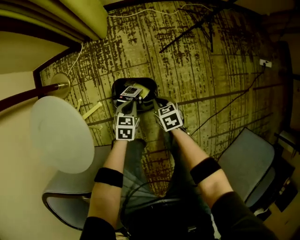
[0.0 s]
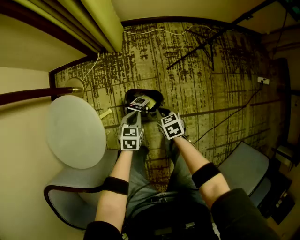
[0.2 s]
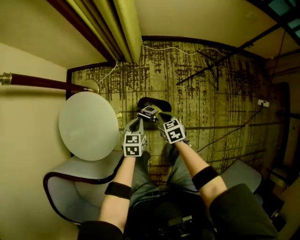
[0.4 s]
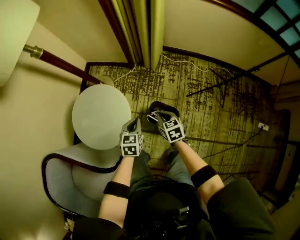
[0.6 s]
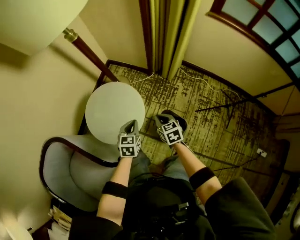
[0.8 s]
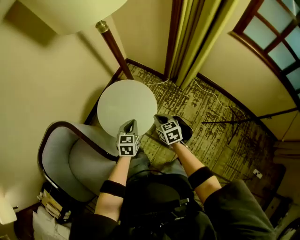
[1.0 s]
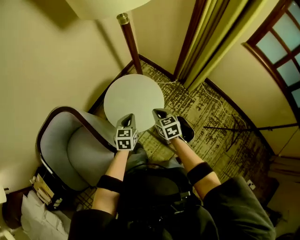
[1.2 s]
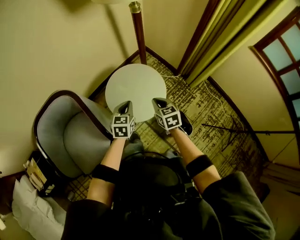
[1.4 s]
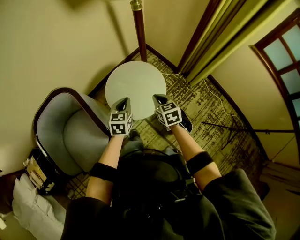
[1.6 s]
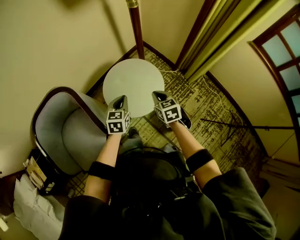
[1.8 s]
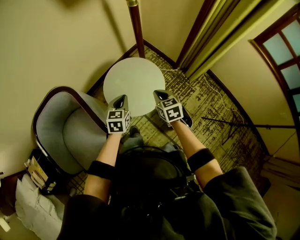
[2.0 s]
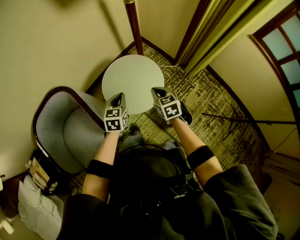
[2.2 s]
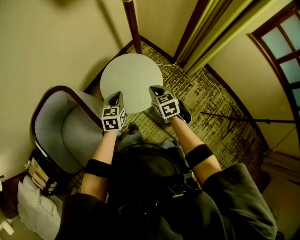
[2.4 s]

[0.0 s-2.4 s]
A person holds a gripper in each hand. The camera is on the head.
0.0 to 1.2 s: The two grippers go approximately 40 cm upward. The right gripper rotates approximately 60 degrees. Meanwhile the left gripper rotates roughly 60 degrees.
1.2 to 2.4 s: The left gripper is displaced to the left by approximately 5 cm.

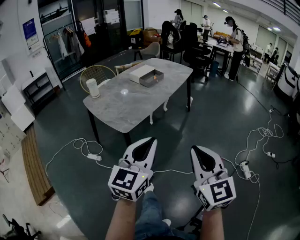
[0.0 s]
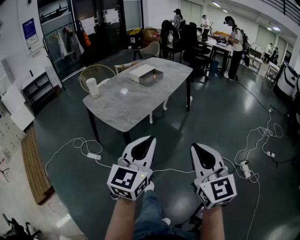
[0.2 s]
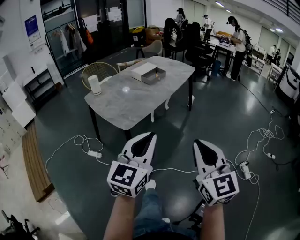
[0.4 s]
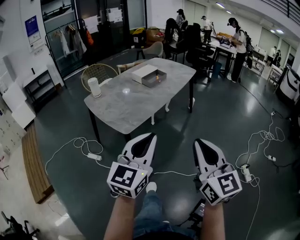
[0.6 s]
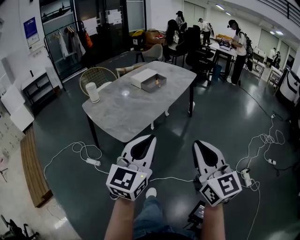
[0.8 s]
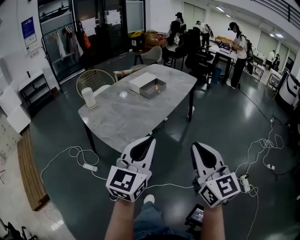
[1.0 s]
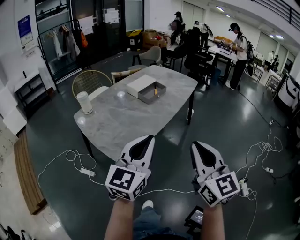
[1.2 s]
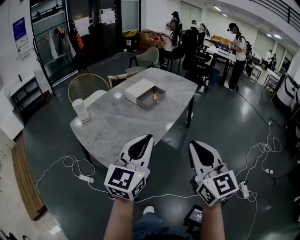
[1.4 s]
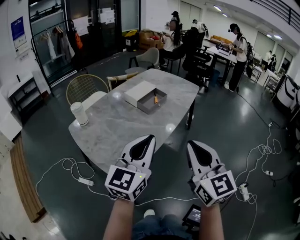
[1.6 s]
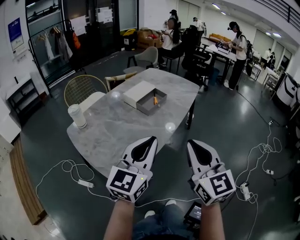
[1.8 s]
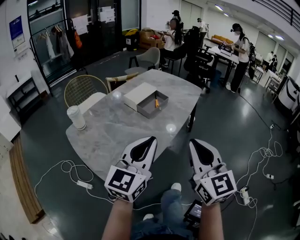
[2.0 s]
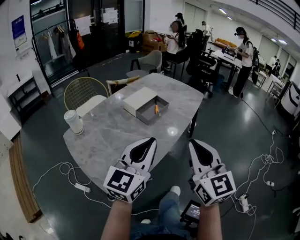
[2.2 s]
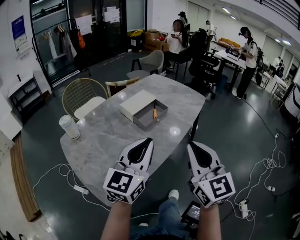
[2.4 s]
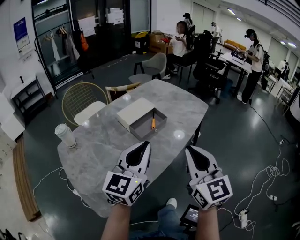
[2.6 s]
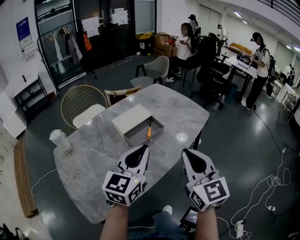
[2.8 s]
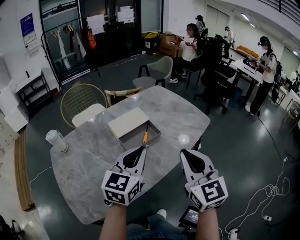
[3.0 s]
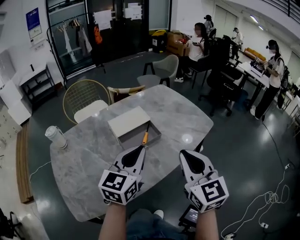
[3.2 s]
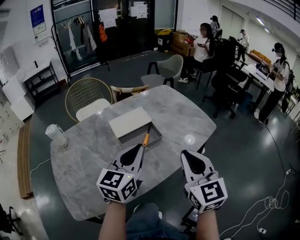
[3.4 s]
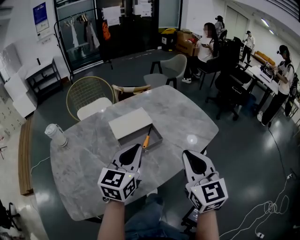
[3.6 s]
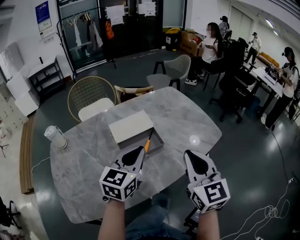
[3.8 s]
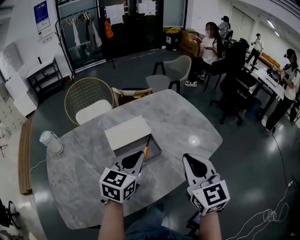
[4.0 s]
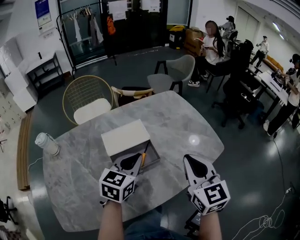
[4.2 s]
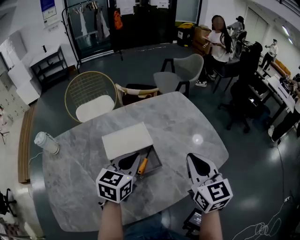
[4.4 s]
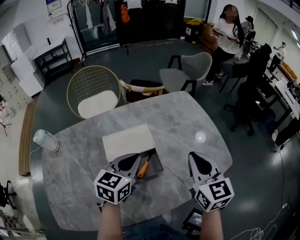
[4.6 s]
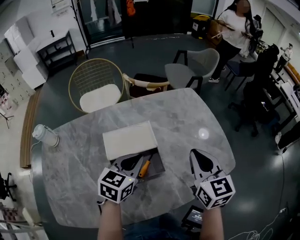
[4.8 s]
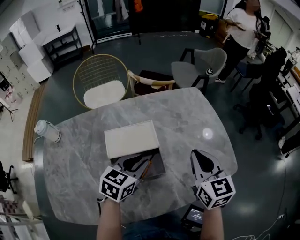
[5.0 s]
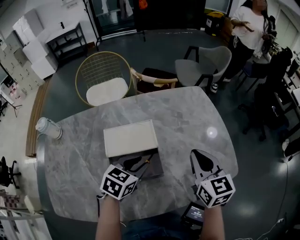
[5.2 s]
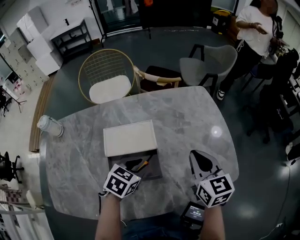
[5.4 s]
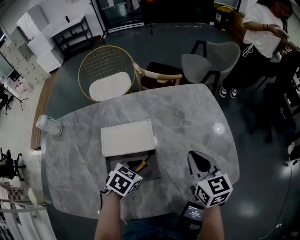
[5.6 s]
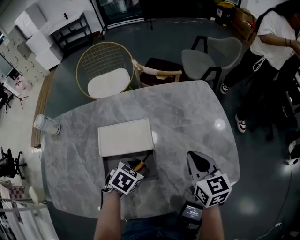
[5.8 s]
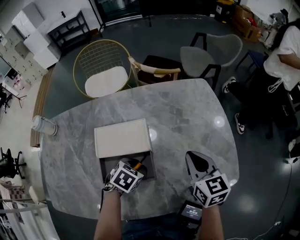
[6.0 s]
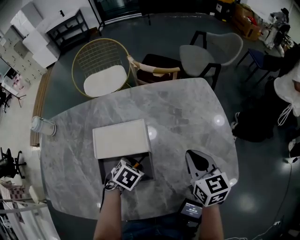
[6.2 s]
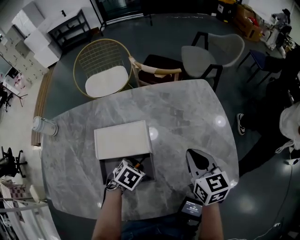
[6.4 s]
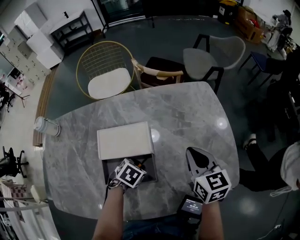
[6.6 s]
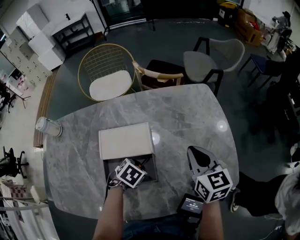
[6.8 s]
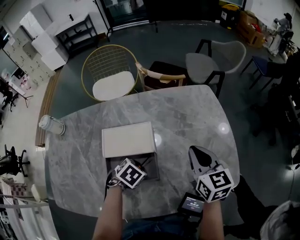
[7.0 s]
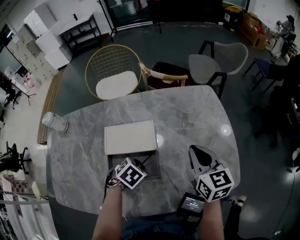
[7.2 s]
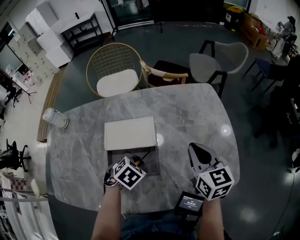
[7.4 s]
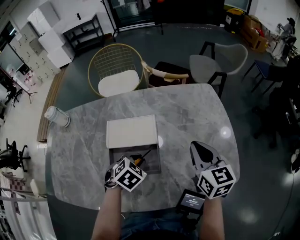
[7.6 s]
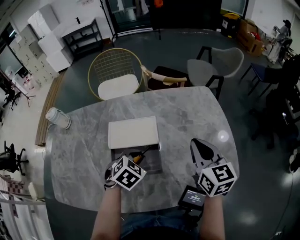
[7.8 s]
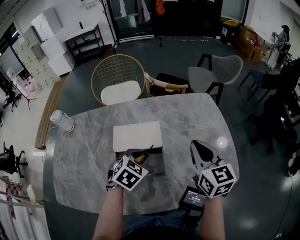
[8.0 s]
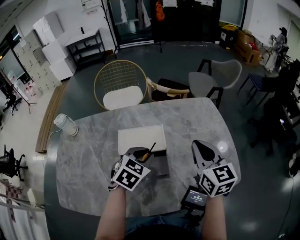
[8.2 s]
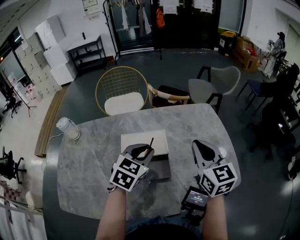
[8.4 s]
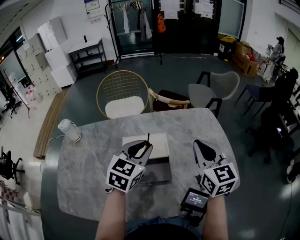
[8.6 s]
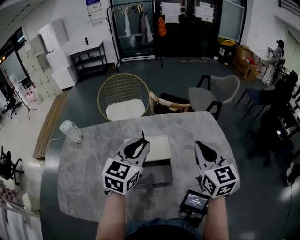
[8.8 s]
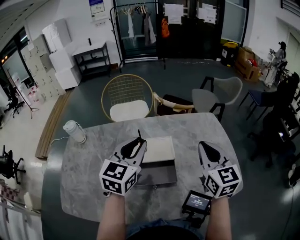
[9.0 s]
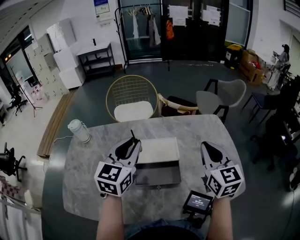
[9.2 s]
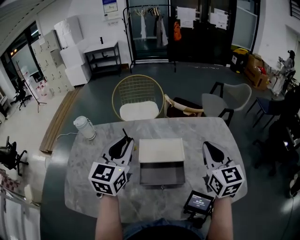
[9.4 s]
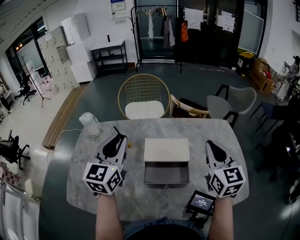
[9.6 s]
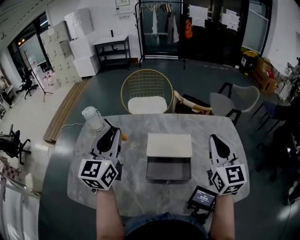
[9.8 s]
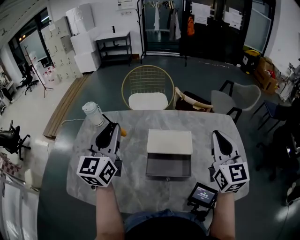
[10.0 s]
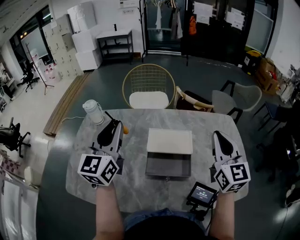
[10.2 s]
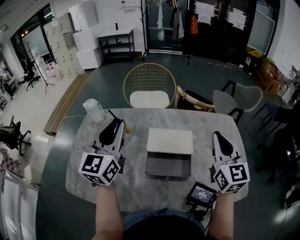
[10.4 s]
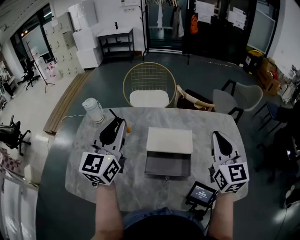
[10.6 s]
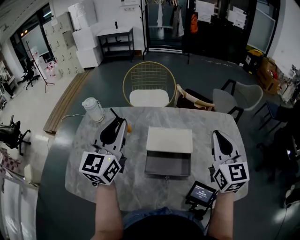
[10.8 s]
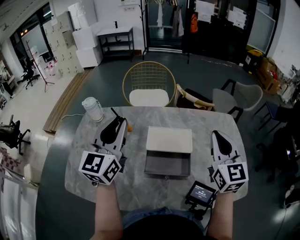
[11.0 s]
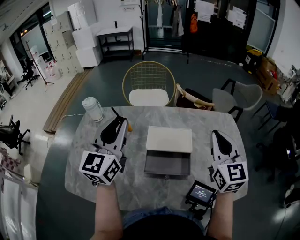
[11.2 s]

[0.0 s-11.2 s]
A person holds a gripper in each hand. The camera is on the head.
0.0 to 1.6 s: Both grippers move forward, approximately 30 cm.
1.6 to 3.2 s: Both grippers travel together forward, approximately 35 cm. The left gripper swivels approximately 20 degrees.
3.2 to 4.8 s: The left gripper goes about 25 cm forward and downward, and changes its angle by approximately 20 degrees; the right gripper moves forward, approximately 30 cm.
4.8 to 6.4 s: The left gripper goes approximately 15 cm downward, and points its fingers roughly 50 degrees further downward, while the right gripper travels downward and forward by some 10 cm.
6.4 to 8.0 s: Both grippers move upward, approximately 10 cm. The left gripper swivels roughly 20 degrees.
8.0 to 9.6 s: The right gripper is displaced to the left and upward by approximately 10 cm; the left gripper shifts about 30 cm to the left and upward, and tilts its fingers some 50 degrees upward.
9.6 to 11.2 s: The grippers make only small movements.

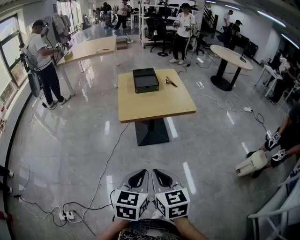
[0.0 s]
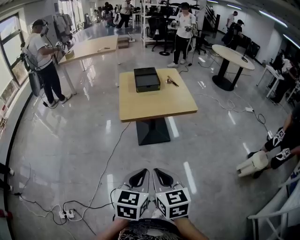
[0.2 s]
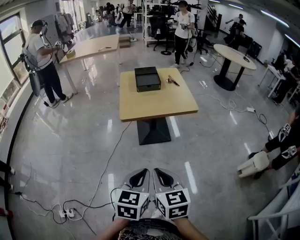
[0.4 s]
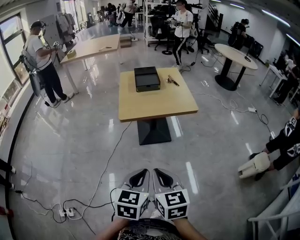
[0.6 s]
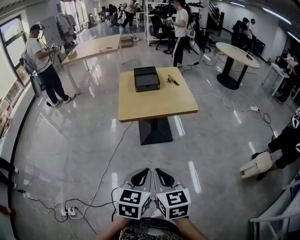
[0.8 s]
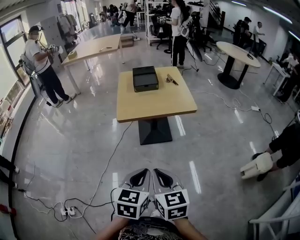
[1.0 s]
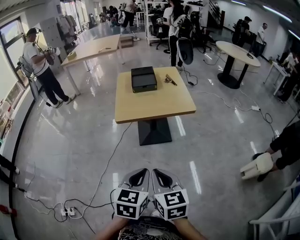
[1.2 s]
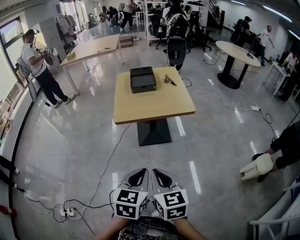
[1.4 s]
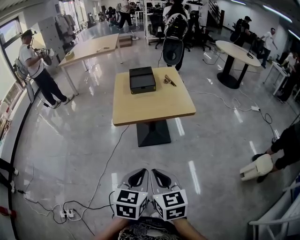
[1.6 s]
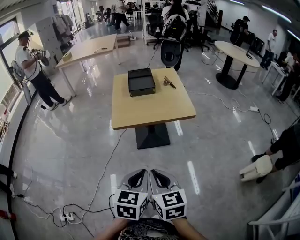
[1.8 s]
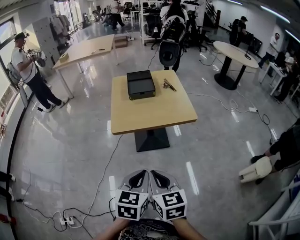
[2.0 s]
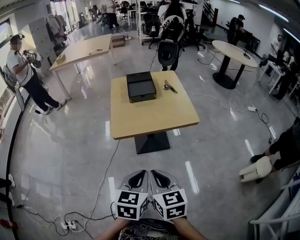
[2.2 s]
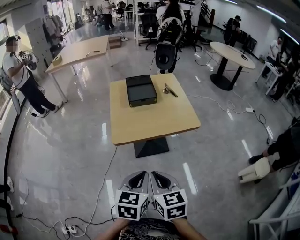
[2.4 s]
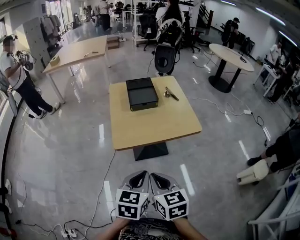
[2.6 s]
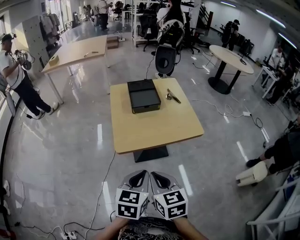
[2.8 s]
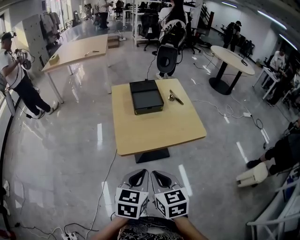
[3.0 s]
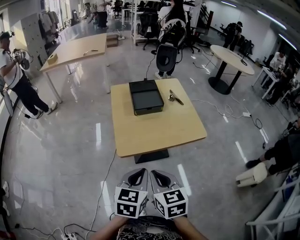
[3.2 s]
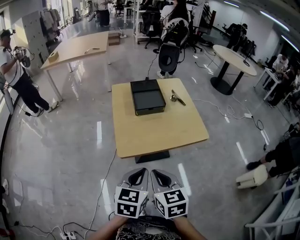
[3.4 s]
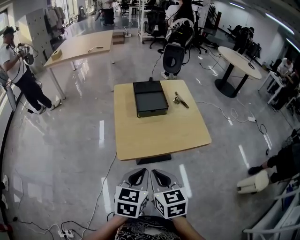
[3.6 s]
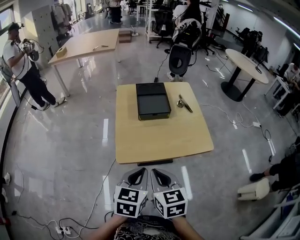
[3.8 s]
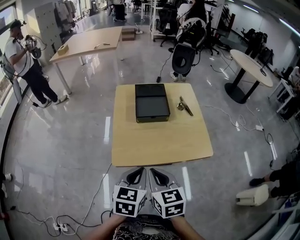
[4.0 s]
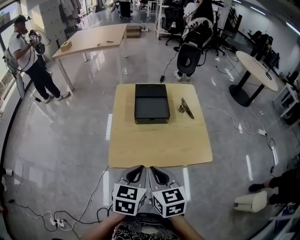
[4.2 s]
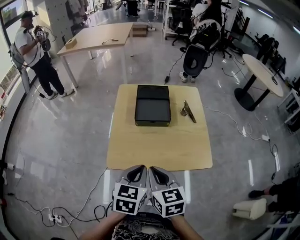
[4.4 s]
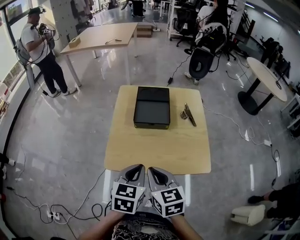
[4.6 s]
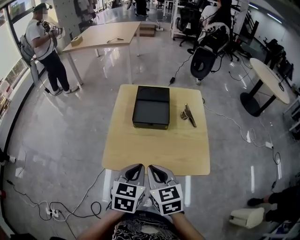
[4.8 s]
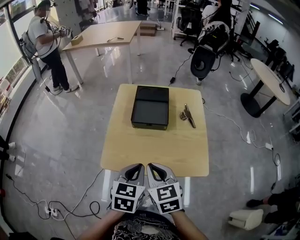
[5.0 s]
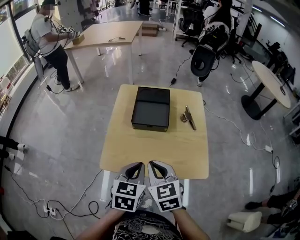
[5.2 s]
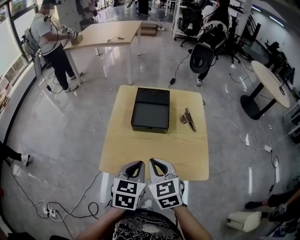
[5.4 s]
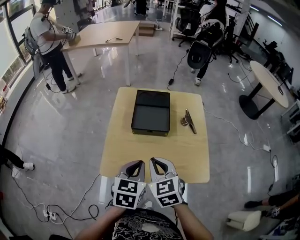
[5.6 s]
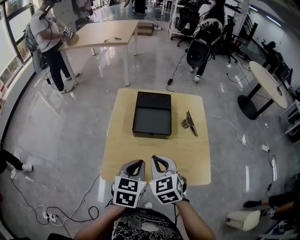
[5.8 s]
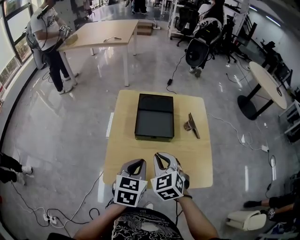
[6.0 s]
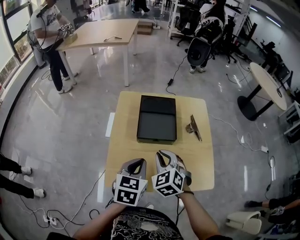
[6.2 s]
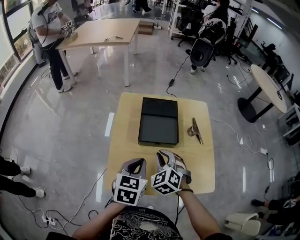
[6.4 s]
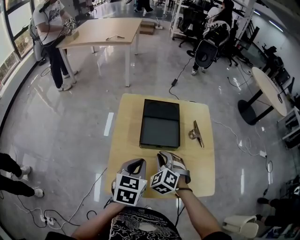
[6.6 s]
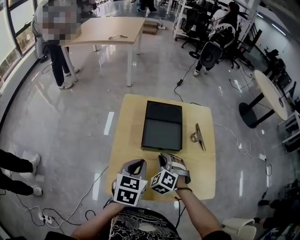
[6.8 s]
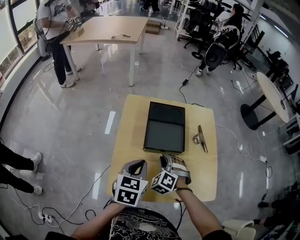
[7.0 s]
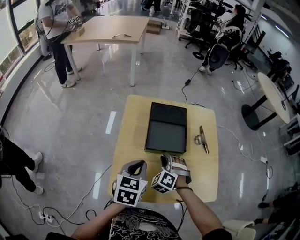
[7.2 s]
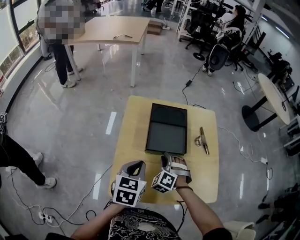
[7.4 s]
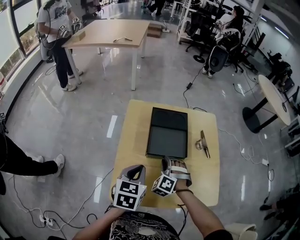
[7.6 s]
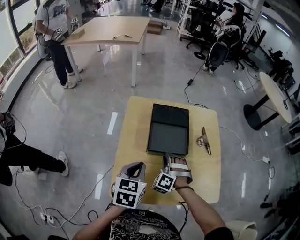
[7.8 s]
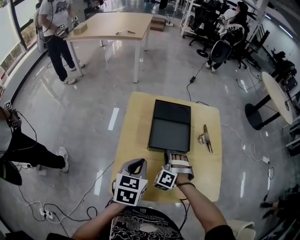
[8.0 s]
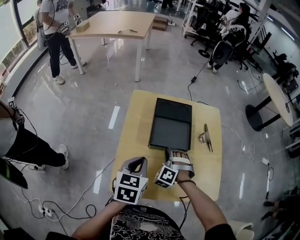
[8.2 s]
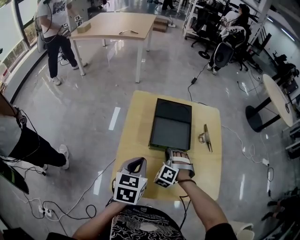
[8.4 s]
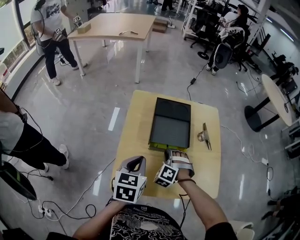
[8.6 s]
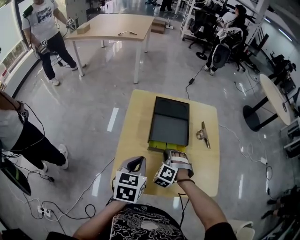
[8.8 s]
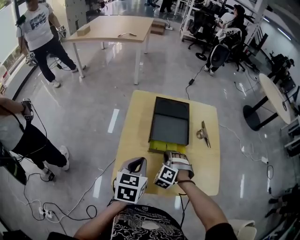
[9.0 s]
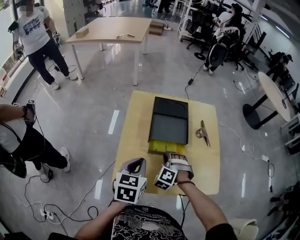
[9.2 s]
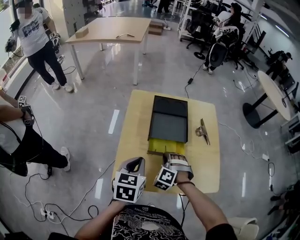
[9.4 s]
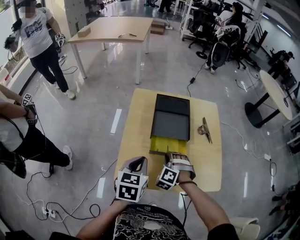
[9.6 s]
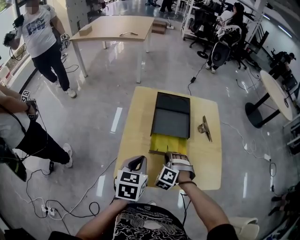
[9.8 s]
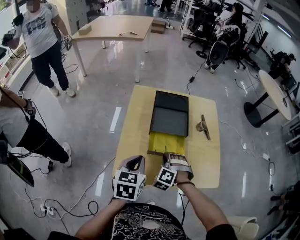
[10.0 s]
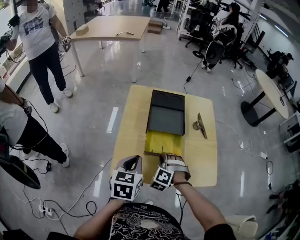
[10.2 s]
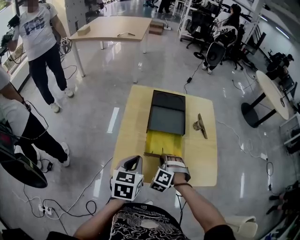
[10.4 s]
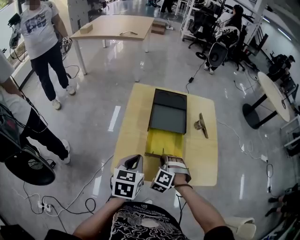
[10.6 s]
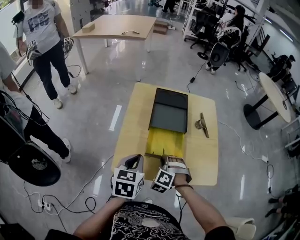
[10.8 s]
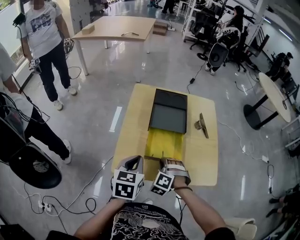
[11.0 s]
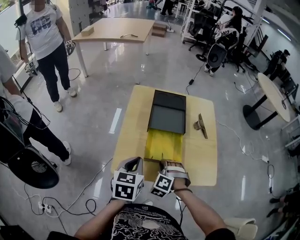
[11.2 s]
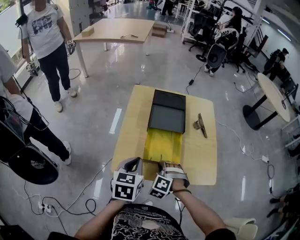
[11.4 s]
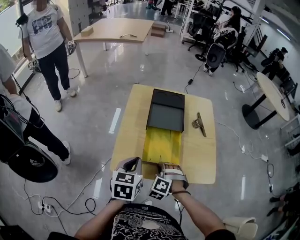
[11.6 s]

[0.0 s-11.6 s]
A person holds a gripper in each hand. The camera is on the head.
0.0 to 1.4 s: Both grippers travel together to the right and forward, some 25 cm.
1.4 to 2.8 s: The pair of grippers is taken forward and to the left, roughly 50 cm.
2.8 to 4.4 s: The pair of grippers is taken forward, about 50 cm.
4.4 to 5.8 s: The grippers both shift forward by approximately 25 cm. The right gripper swivels approximately 30 degrees.
5.8 to 7.2 s: The right gripper moves forward, downward and to the left, approximately 35 cm, and twists roughly 40 degrees counterclockwise, seen from behind. Meanwhile the left gripper travels forward and to the left by some 30 cm.
7.2 to 8.8 s: Both grippers move backward, roughly 5 cm.
8.8 to 10.2 s: Both grippers move backward, about 15 cm.
10.2 to 11.6 s: Both grippers move backward, roughly 10 cm.
